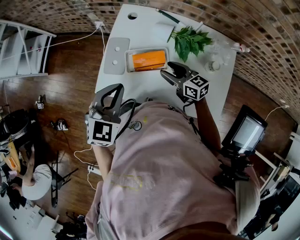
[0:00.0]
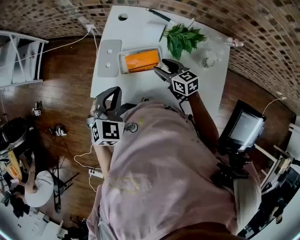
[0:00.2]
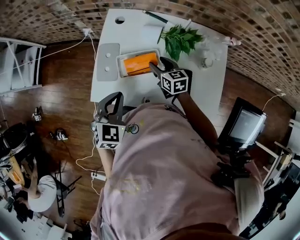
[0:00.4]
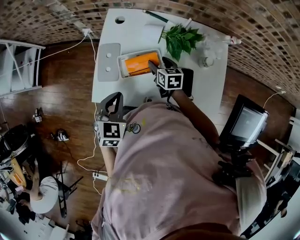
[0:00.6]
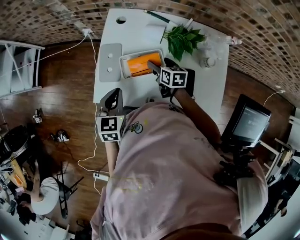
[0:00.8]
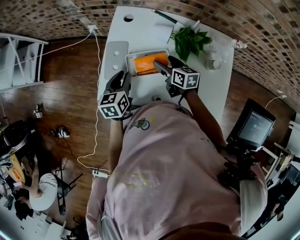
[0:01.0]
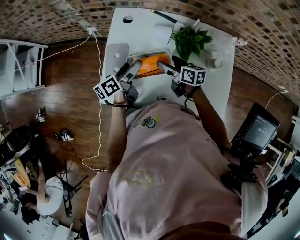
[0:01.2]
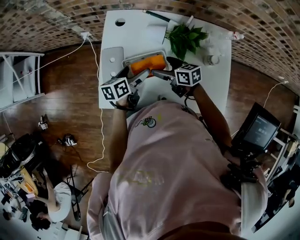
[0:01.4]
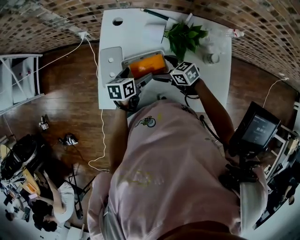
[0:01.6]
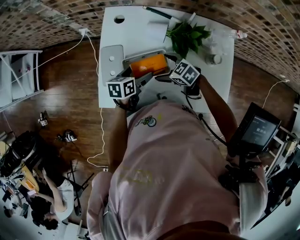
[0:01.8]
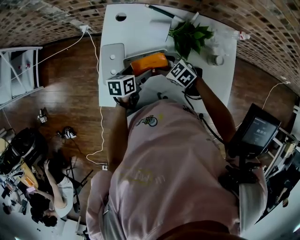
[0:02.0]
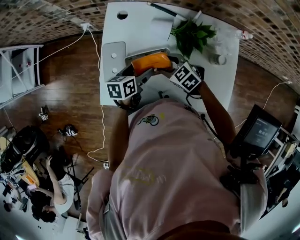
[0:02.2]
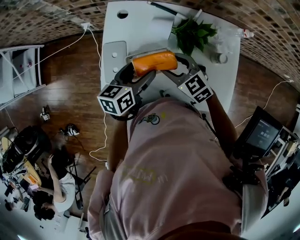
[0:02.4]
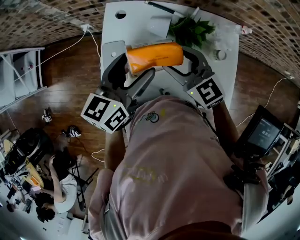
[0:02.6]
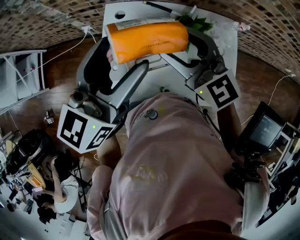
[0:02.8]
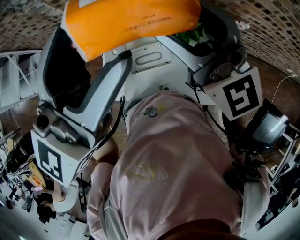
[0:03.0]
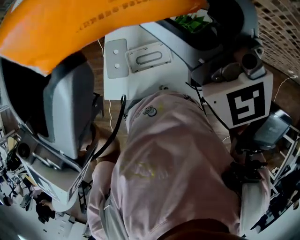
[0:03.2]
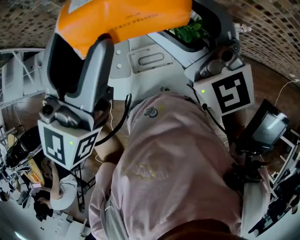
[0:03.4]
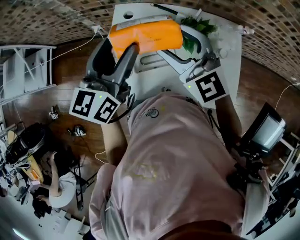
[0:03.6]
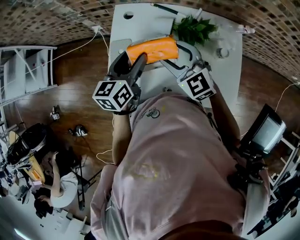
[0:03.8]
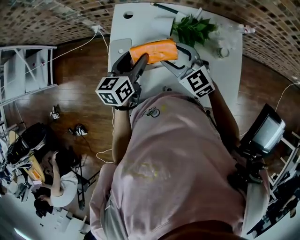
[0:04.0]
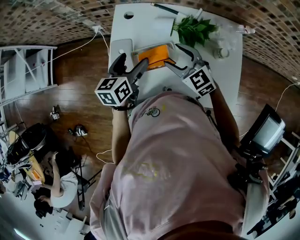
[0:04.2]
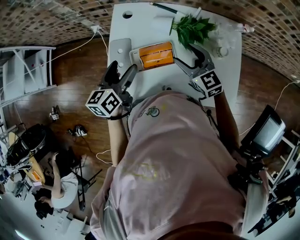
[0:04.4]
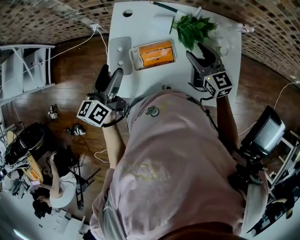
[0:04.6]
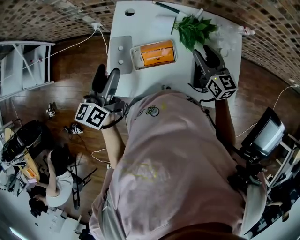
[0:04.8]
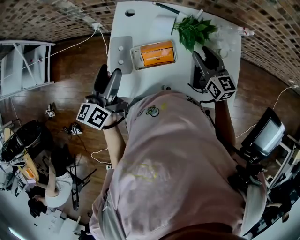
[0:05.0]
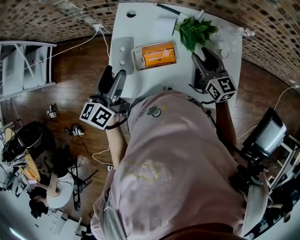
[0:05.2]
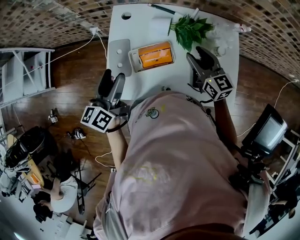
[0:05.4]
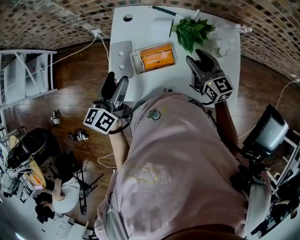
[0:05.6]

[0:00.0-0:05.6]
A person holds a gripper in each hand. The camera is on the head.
0:00.0 to 0:01.4: The left gripper goes some 20 cm downward and forward, rolls counterclockwise, seen from behind, by some 60 degrees, and opens. The right gripper shifts roughly 10 cm downward and forward, and opens up.
0:01.4 to 0:02.8: The grippers both shift upward by about 30 cm. The right gripper twists approximately 50 degrees counterclockwise, seen from behind, and closes its fingers. Meanwhile the left gripper changes its angle by approximately 50 degrees, and closes its fingers.
0:02.8 to 0:04.2: Both grippers travel together downward, about 20 cm. The left gripper changes its angle by about 30 degrees.
0:04.2 to 0:05.6: The left gripper travels upward, backward and to the left by roughly 10 cm. The right gripper goes approximately 10 cm to the right, and turns by some 30 degrees.

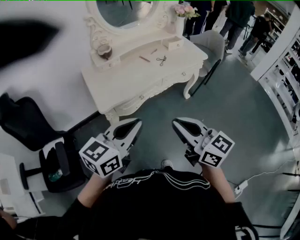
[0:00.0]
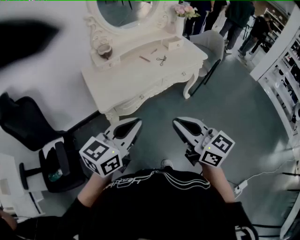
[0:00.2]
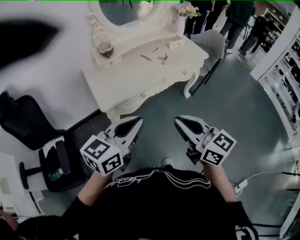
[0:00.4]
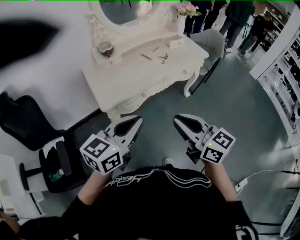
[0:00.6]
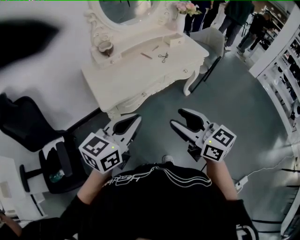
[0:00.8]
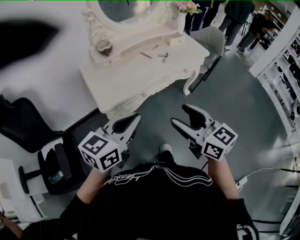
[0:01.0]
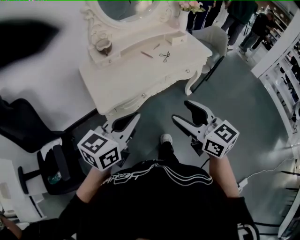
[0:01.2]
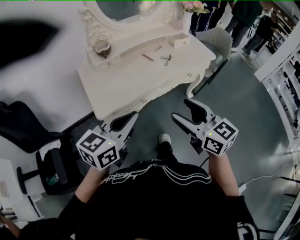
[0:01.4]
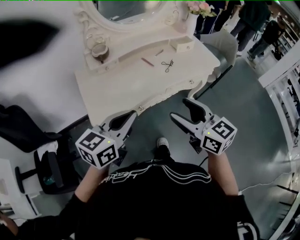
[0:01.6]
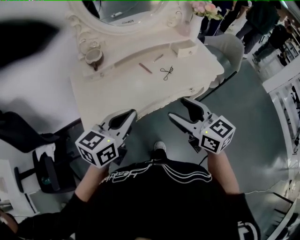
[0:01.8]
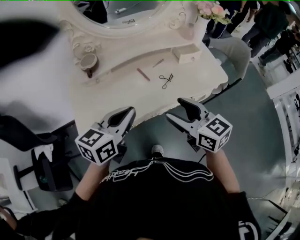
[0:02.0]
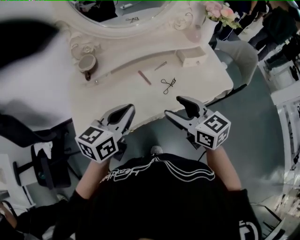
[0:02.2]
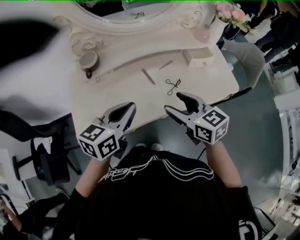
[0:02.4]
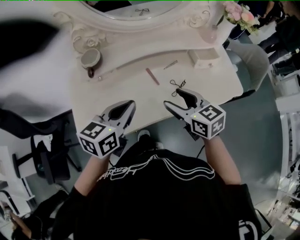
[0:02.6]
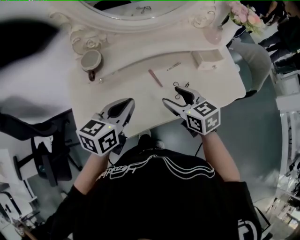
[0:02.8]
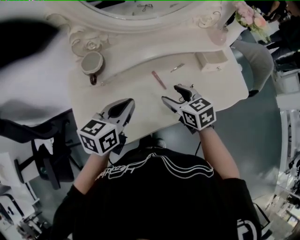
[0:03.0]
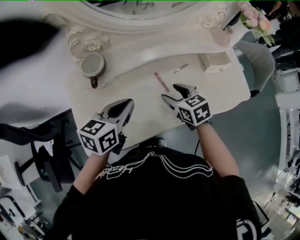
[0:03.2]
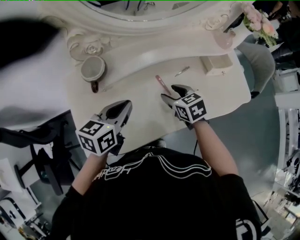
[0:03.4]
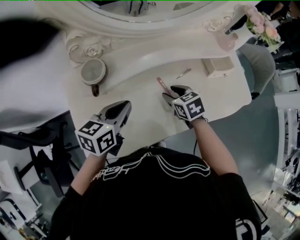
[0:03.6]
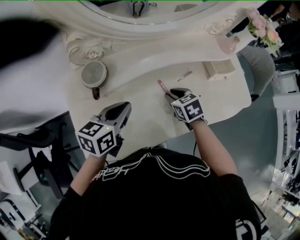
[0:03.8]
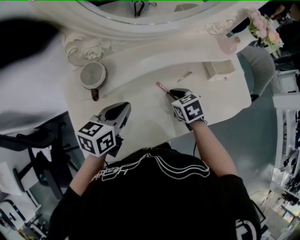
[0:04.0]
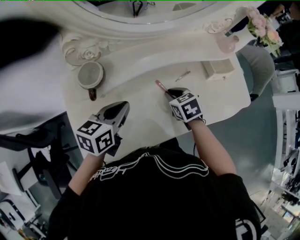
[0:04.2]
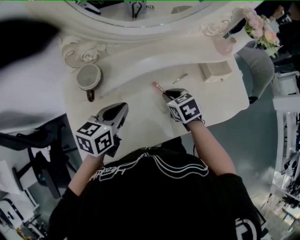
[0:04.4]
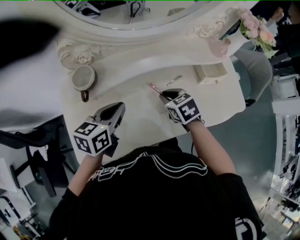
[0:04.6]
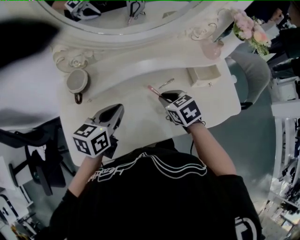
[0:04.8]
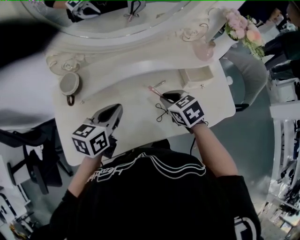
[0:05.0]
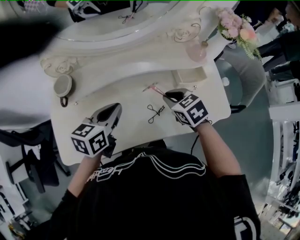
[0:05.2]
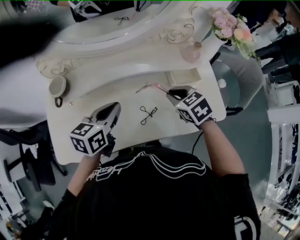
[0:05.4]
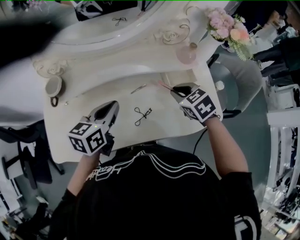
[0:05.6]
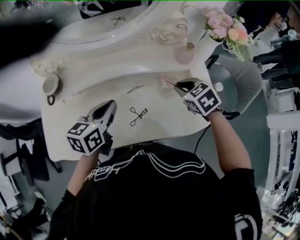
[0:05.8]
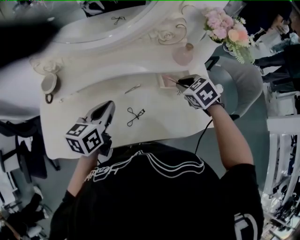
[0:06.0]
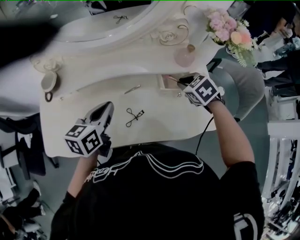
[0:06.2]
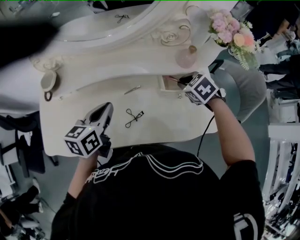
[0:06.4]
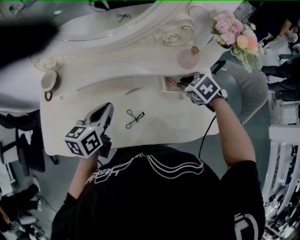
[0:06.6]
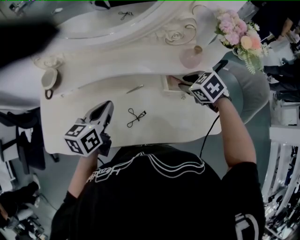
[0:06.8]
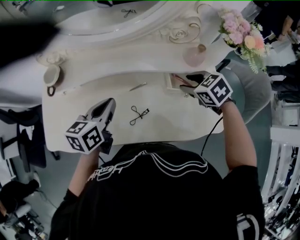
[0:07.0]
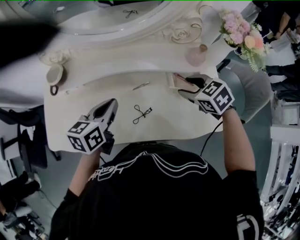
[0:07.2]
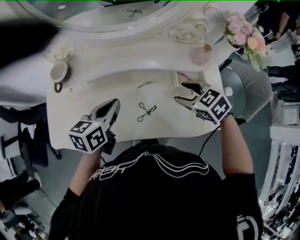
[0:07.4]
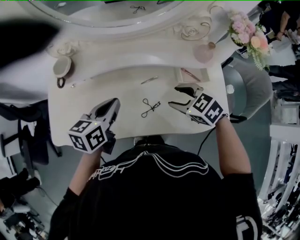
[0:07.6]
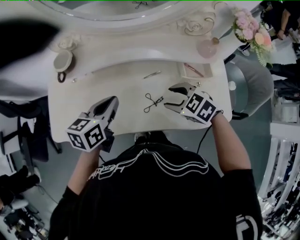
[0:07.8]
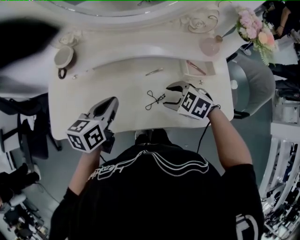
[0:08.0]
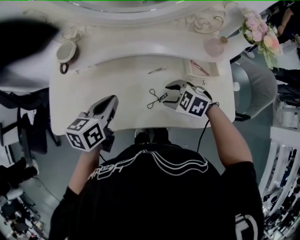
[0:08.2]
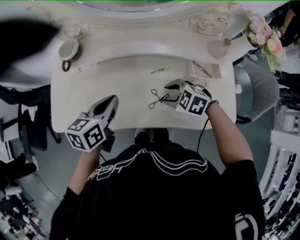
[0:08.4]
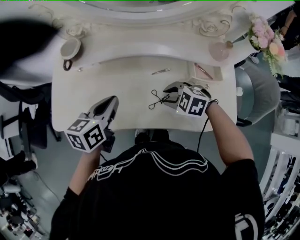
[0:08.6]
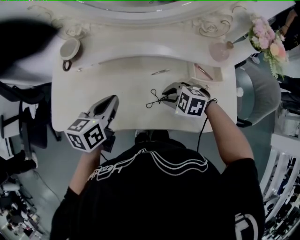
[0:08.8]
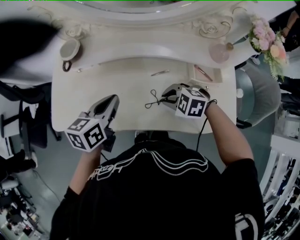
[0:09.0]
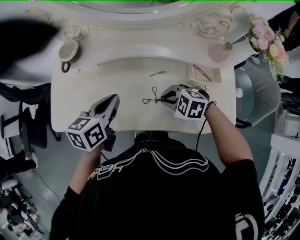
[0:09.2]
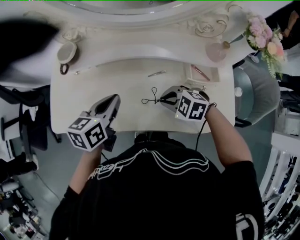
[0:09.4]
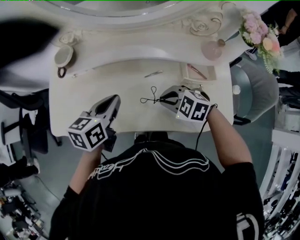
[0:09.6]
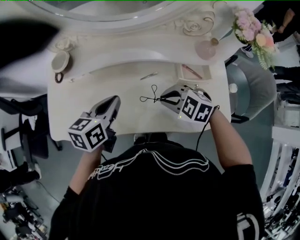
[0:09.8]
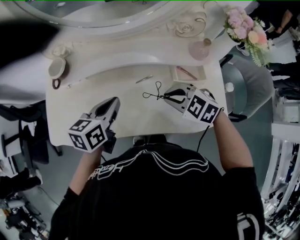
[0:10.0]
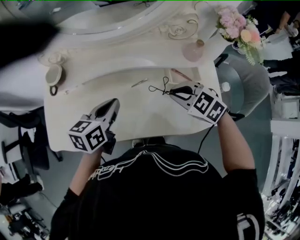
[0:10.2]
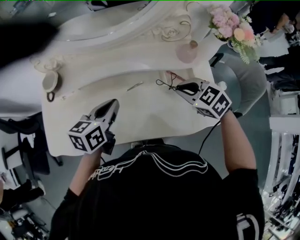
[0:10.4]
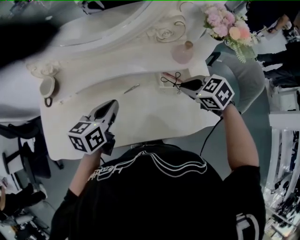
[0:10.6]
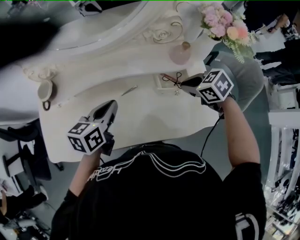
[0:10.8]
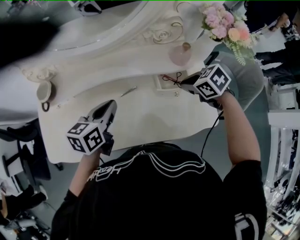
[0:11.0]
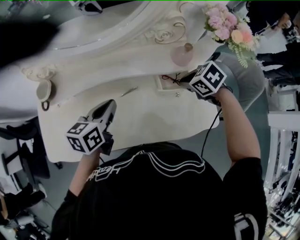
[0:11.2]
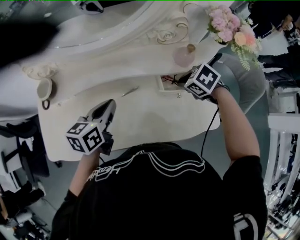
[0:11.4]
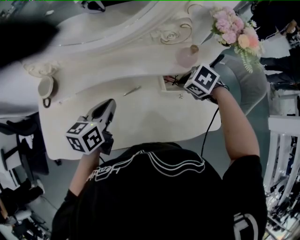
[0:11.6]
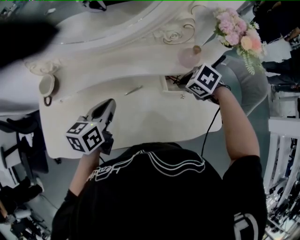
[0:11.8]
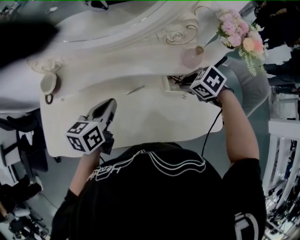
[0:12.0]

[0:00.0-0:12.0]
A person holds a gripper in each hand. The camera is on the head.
0:00.0 to 0:01.6: The grippers both shift forward by approximately 20 cm. The right gripper opens up.
0:01.6 to 0:03.0: The left gripper is displaced forward by some 30 cm, and rotates some 20 degrees; the right gripper is displaced forward and downward by about 40 cm, and changes its angle by approximately 30 degrees.
0:03.0 to 0:04.4: The right gripper is displaced downward and forward by some 10 cm, and closes its fingers, while the left gripper moves forward, about 5 cm.
0:04.4 to 0:06.0: The two grippers go some 25 cm to the right. The right gripper turns by about 20 degrees.
0:06.0 to 0:07.6: The right gripper is displaced to the left and backward by some 15 cm, swivels some 20 degrees, and opens its fingers; the left gripper moves to the left, some 5 cm.
0:07.6 to 0:09.0: The right gripper is displaced downward and to the left by approximately 10 cm, rotates roughly 30 degrees, and closes its fingers.
0:09.0 to 0:10.4: The left gripper is displaced to the right by approximately 10 cm. The right gripper heads to the right and upward, covering approximately 20 cm, and swivels about 40 degrees.
0:10.4 to 0:12.0: The right gripper shifts roughly 5 cm downward, and turns by some 20 degrees.

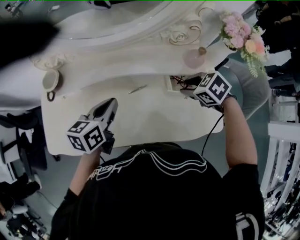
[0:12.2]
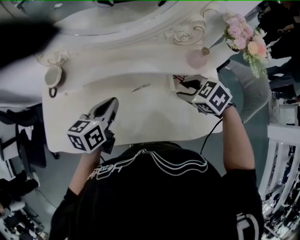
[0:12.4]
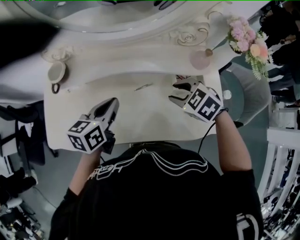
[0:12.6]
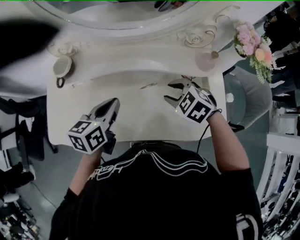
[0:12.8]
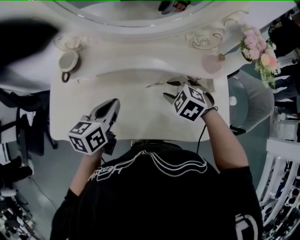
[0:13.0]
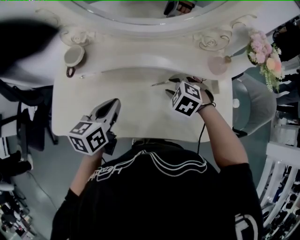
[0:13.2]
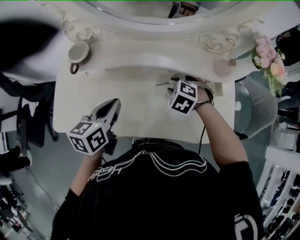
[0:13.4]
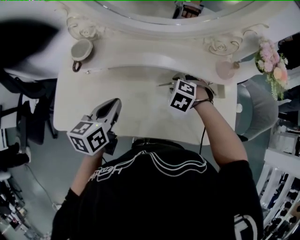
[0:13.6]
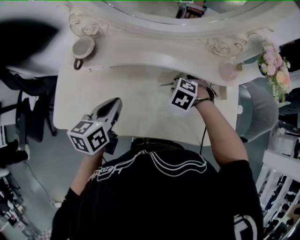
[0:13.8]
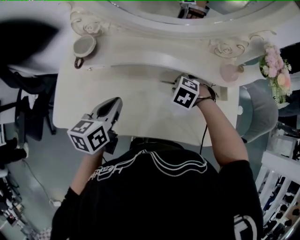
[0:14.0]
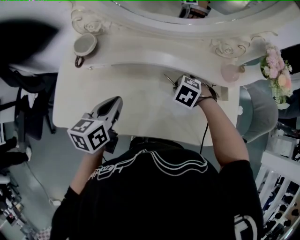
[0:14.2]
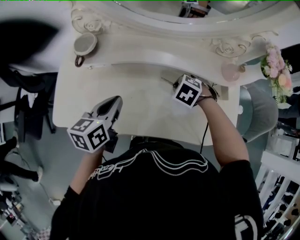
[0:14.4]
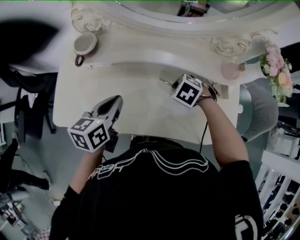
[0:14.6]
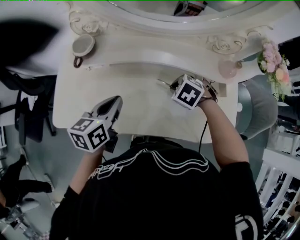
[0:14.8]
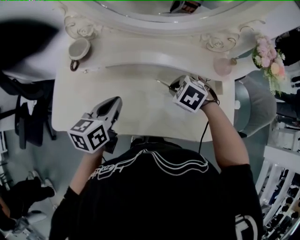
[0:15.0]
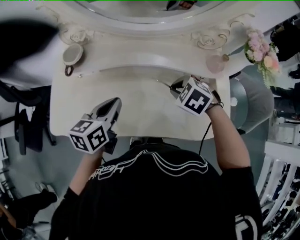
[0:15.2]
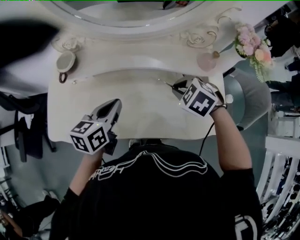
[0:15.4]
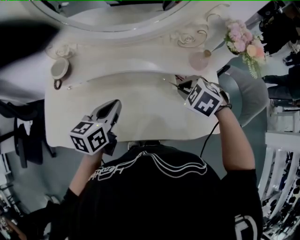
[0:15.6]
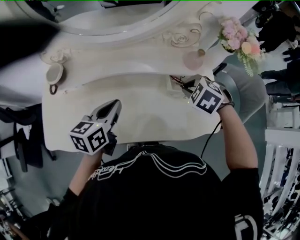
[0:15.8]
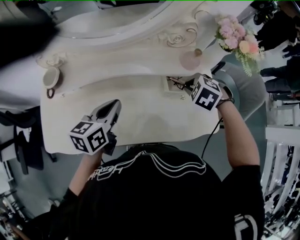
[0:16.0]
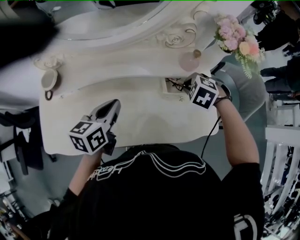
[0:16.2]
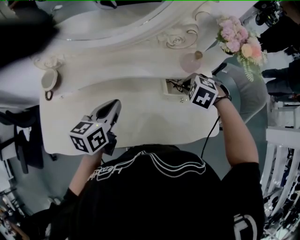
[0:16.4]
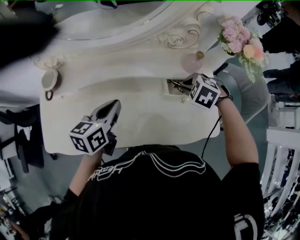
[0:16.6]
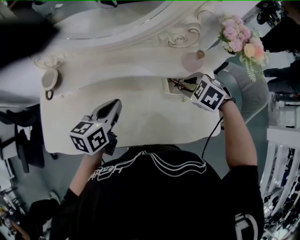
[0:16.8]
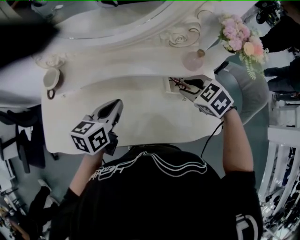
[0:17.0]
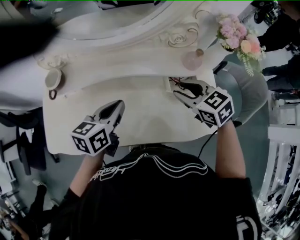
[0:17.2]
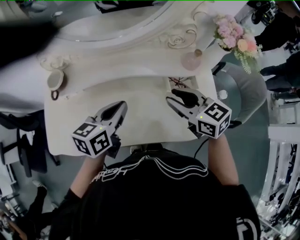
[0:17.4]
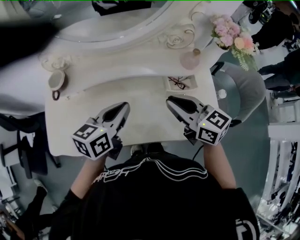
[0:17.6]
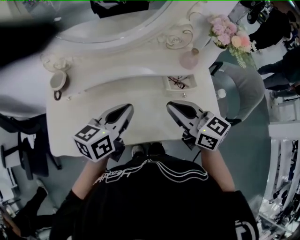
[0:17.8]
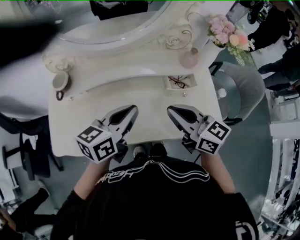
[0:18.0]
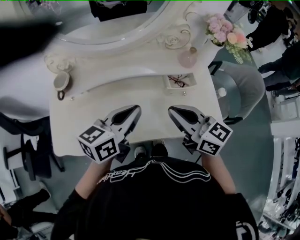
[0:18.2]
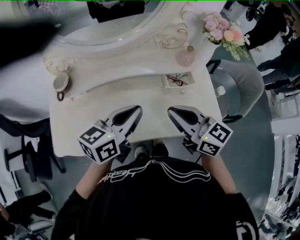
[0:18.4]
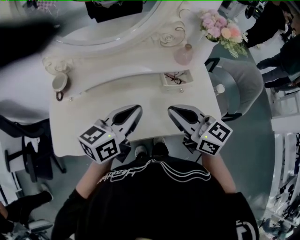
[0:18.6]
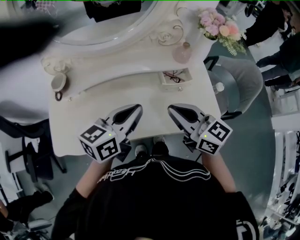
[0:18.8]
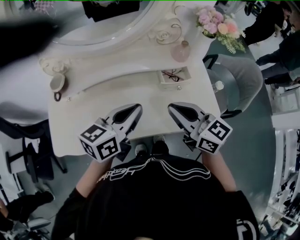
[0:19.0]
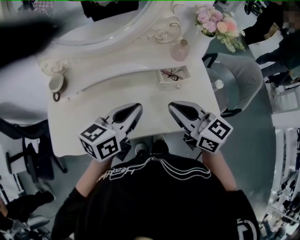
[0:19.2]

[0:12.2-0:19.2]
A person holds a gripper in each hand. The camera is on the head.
0:12.2 to 0:13.6: The right gripper moves to the left and downward, some 20 cm, and rotates roughly 40 degrees, while the left gripper goes approximately 10 cm to the left.
0:13.6 to 0:15.0: The right gripper changes place by about 5 cm, and closes.
0:15.0 to 0:16.4: The right gripper ends up some 20 cm from where it was. The left gripper changes place by some 15 cm.
0:16.4 to 0:17.8: The right gripper ends up approximately 20 cm from where it was, and angles its fingers upward, by some 70 degrees. Meanwhile the left gripper heads upward, covering some 5 cm.
0:17.8 to 0:19.2: The right gripper ends up roughly 5 cm from where it was. Meanwhile the left gripper moves to the right, about 5 cm.
